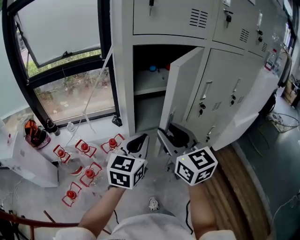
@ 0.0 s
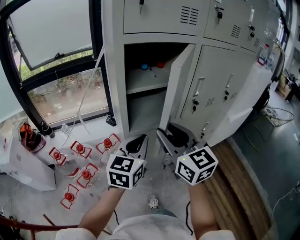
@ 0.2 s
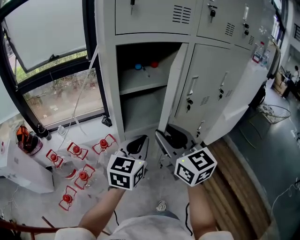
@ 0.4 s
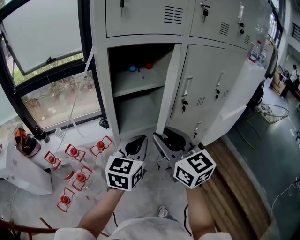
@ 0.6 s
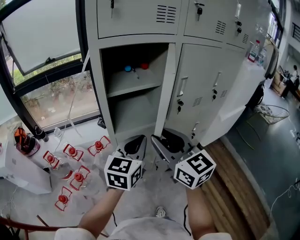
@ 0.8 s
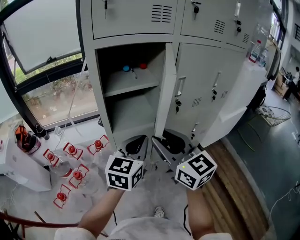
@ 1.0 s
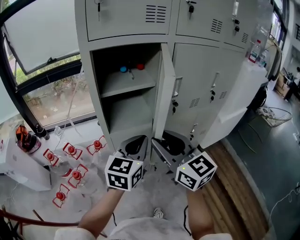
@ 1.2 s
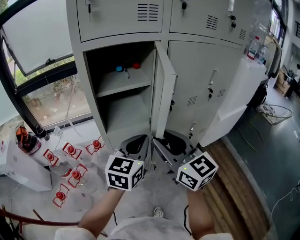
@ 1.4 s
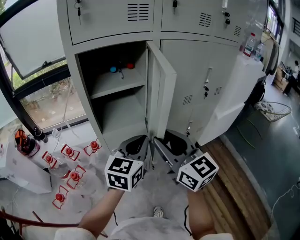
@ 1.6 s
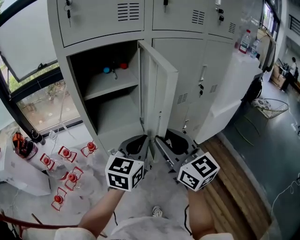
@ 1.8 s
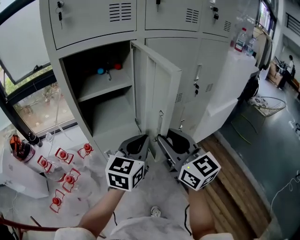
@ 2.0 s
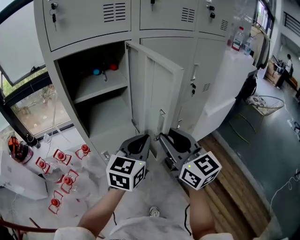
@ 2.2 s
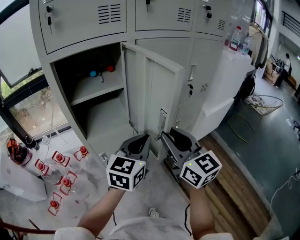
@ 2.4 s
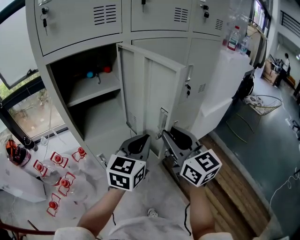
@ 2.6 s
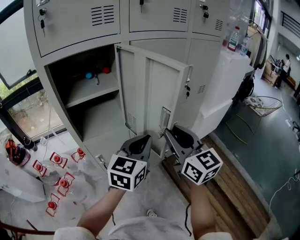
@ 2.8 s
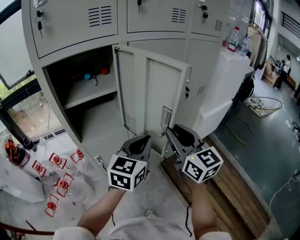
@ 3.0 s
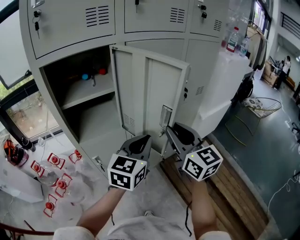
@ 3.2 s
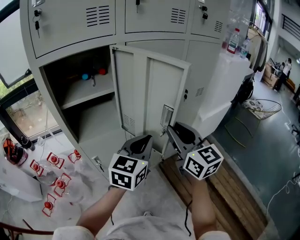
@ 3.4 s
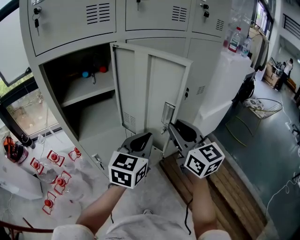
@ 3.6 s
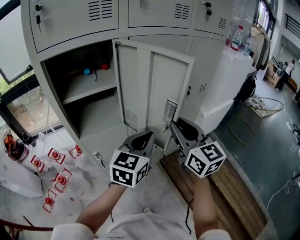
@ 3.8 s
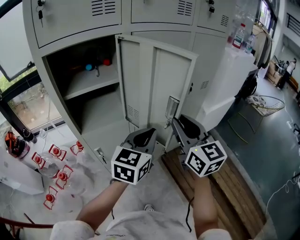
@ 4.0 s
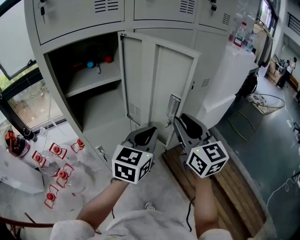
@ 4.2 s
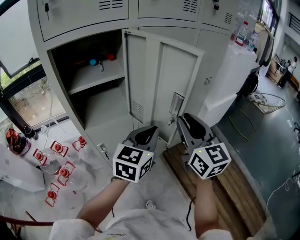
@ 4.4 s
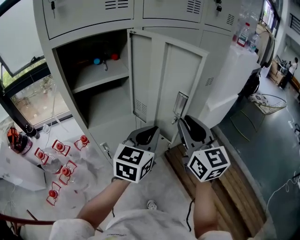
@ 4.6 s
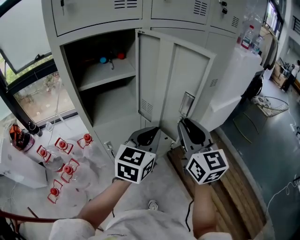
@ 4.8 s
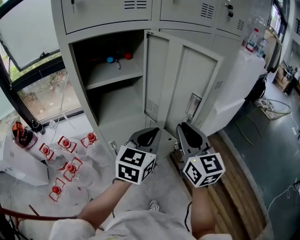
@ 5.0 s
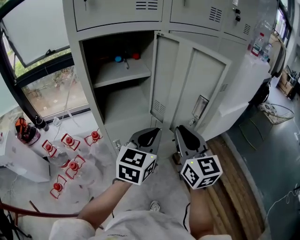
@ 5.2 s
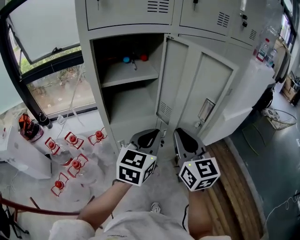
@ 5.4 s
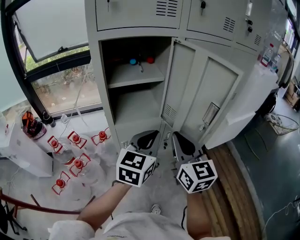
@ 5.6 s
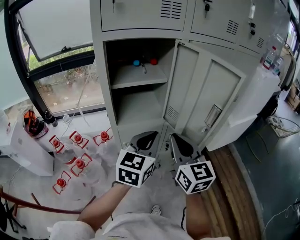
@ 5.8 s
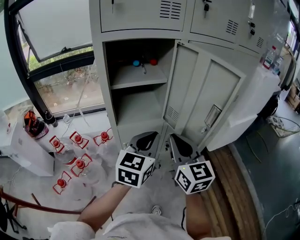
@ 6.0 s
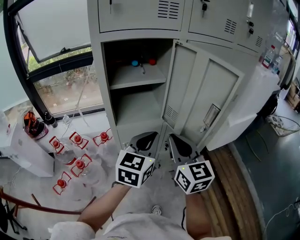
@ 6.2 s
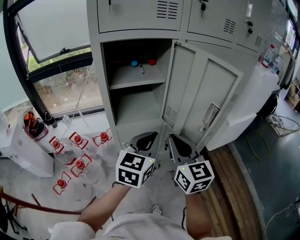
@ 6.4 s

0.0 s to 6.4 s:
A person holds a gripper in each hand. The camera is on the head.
0.0 to 1.6 s: The two grippers go about 15 cm to the right.
1.6 to 3.2 s: The right gripper goes roughly 15 cm to the right and forward, while the left gripper moves to the right, roughly 10 cm.
3.2 to 4.8 s: There are only small adjustments of the grippers.
4.8 to 6.4 s: The grippers both shift to the left by approximately 10 cm.

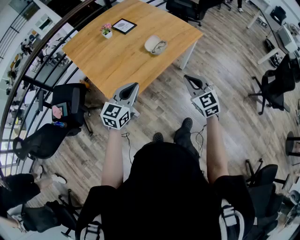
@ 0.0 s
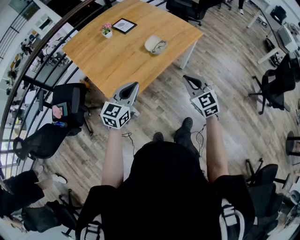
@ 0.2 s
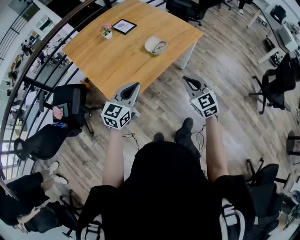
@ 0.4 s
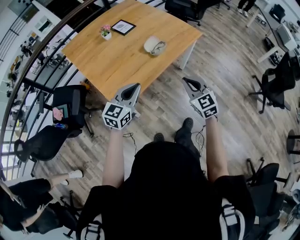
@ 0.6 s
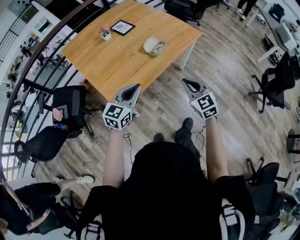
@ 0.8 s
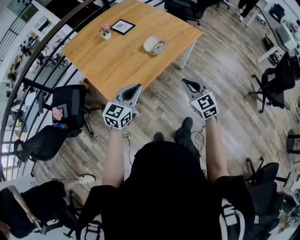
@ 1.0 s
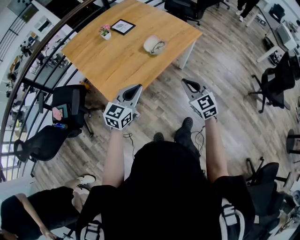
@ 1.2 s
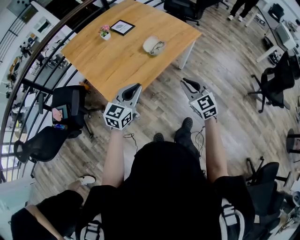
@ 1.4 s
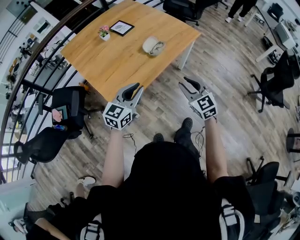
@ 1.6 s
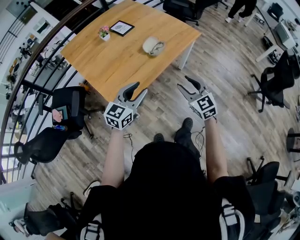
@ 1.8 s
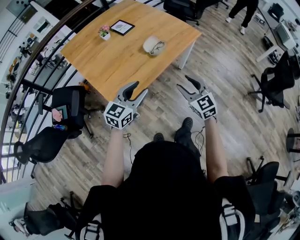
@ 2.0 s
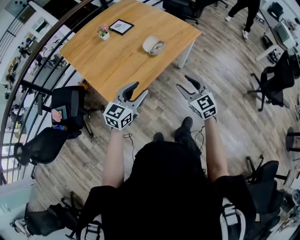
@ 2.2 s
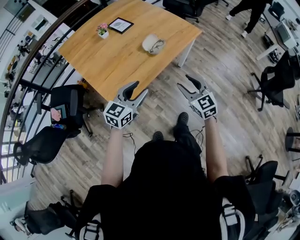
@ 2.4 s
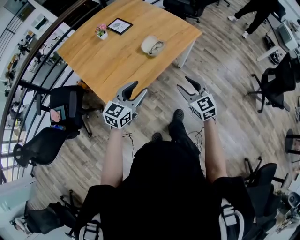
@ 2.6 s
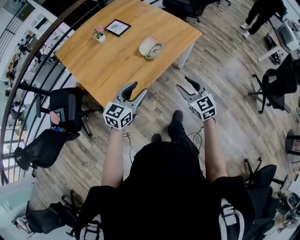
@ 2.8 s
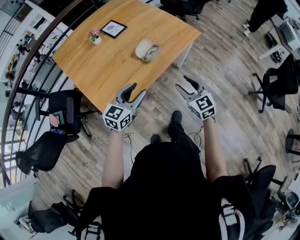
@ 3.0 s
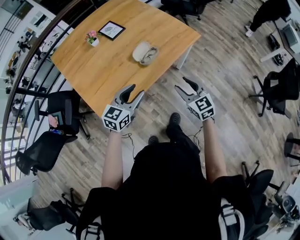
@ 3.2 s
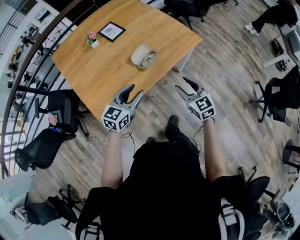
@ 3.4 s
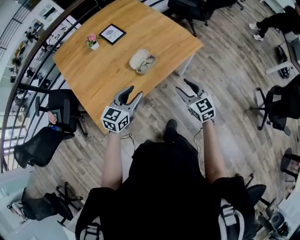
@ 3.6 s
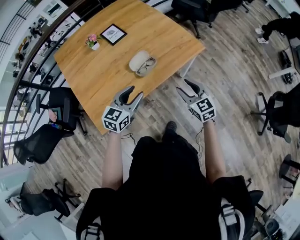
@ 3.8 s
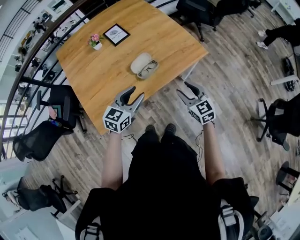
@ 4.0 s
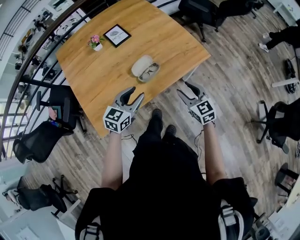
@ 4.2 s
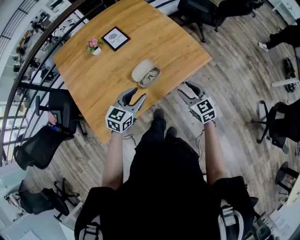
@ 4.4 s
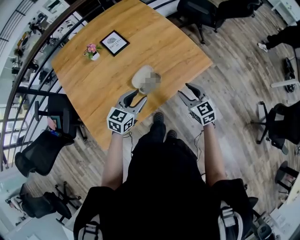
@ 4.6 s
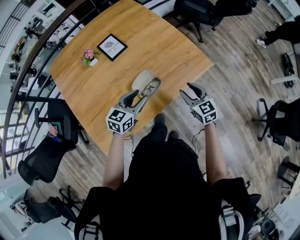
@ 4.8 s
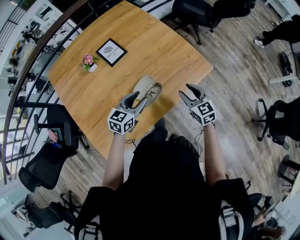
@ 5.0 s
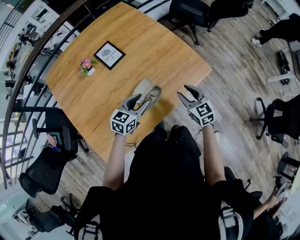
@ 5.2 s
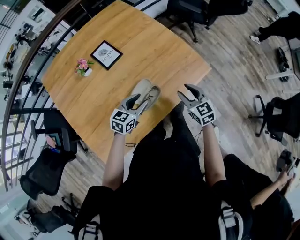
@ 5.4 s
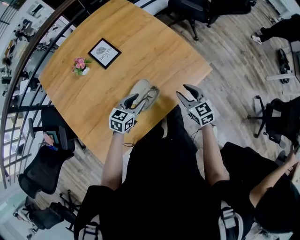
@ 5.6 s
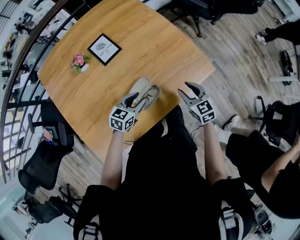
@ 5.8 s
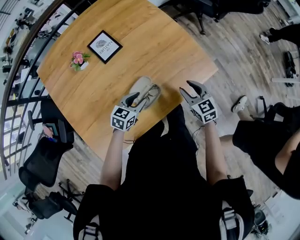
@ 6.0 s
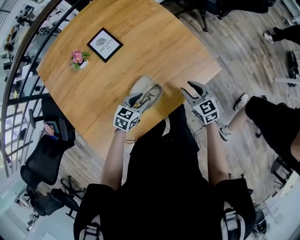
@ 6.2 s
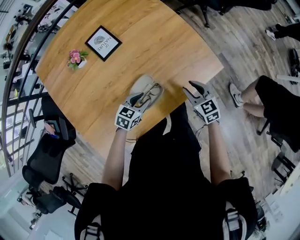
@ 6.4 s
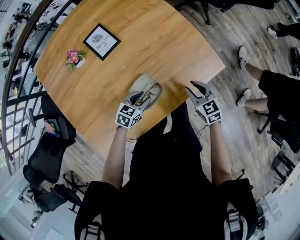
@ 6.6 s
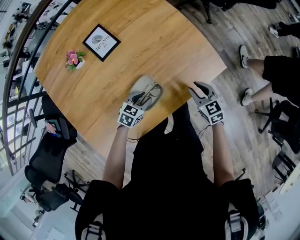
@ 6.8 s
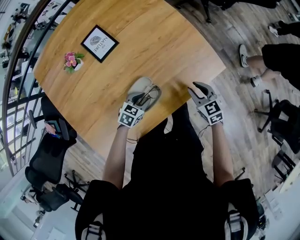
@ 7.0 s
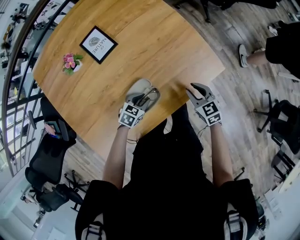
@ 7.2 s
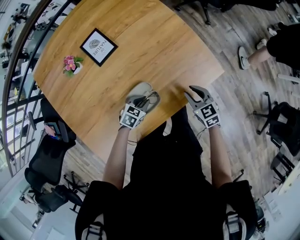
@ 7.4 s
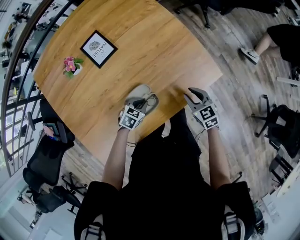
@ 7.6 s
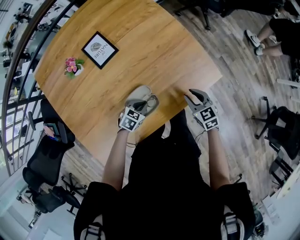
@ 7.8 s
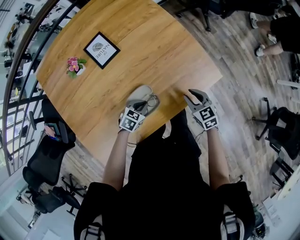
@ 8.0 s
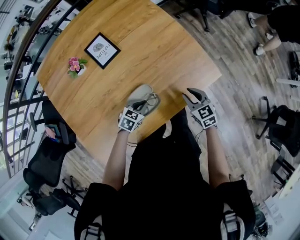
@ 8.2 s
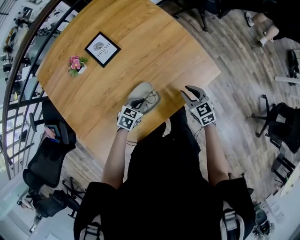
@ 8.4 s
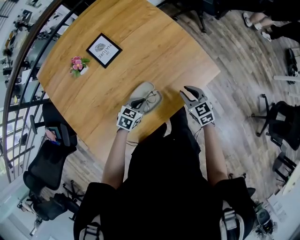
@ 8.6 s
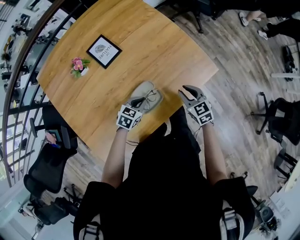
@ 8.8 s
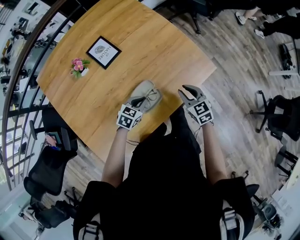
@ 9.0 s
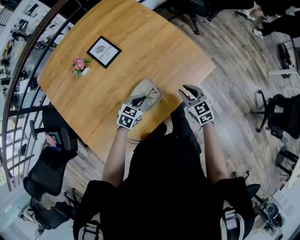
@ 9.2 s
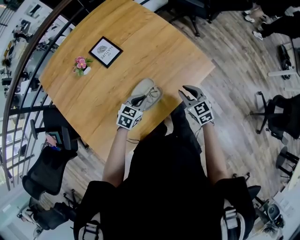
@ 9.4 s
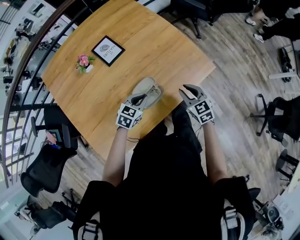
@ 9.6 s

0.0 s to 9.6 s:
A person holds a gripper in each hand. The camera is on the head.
0.0 to 1.6 s: The right gripper opens.
1.6 to 3.2 s: The grippers both shift forward and to the right by roughly 15 cm. The left gripper opens up.
3.2 to 4.8 s: Both grippers move forward, approximately 25 cm.
4.8 to 6.4 s: The right gripper is displaced downward and forward by some 10 cm; the left gripper is displaced downward by roughly 15 cm, and changes its angle by some 20 degrees.
6.4 to 8.0 s: The left gripper moves downward, about 5 cm, and closes up.
8.0 to 9.6 s: The left gripper heads upward, covering approximately 10 cm. The right gripper goes approximately 10 cm upward and backward.

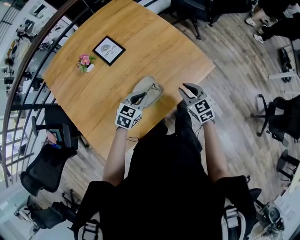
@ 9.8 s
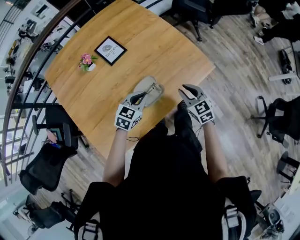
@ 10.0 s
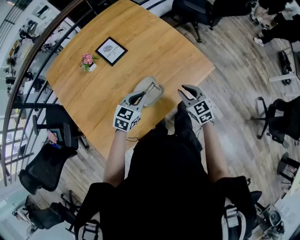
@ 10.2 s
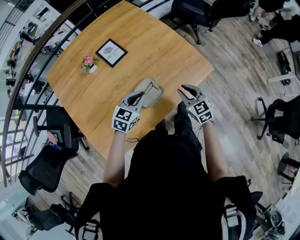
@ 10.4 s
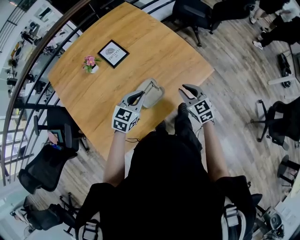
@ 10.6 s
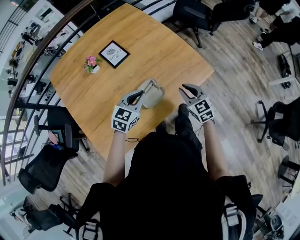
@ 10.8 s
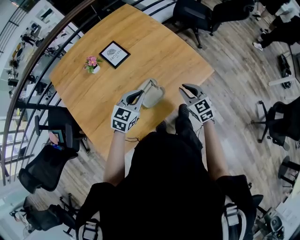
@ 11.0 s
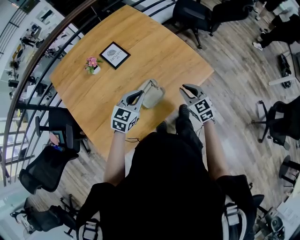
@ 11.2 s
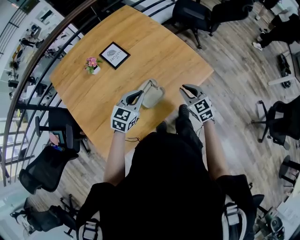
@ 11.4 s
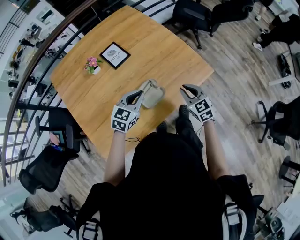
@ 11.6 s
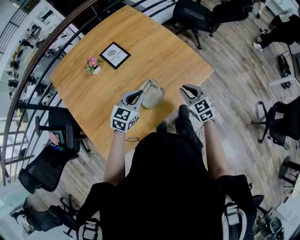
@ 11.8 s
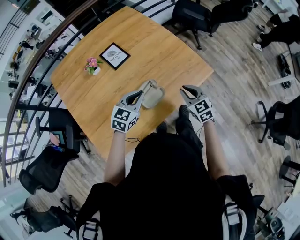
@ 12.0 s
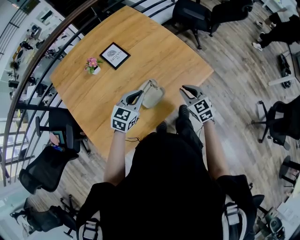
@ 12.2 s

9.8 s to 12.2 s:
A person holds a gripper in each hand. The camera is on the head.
9.8 to 11.0 s: The left gripper shifts some 10 cm upward.
11.0 to 12.2 s: Both grippers stay about where they are.

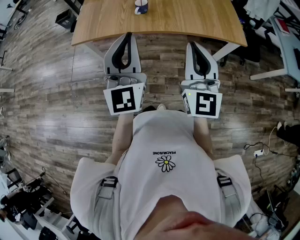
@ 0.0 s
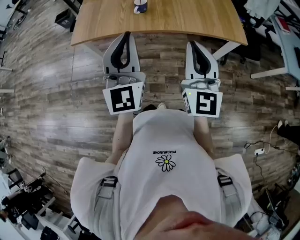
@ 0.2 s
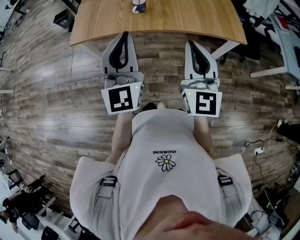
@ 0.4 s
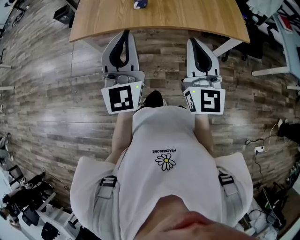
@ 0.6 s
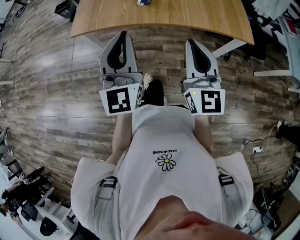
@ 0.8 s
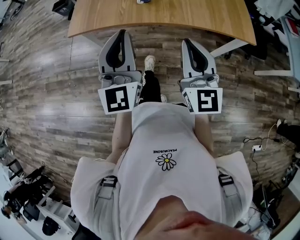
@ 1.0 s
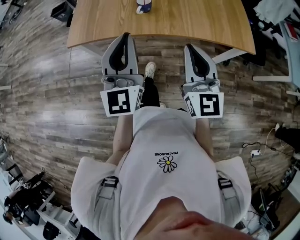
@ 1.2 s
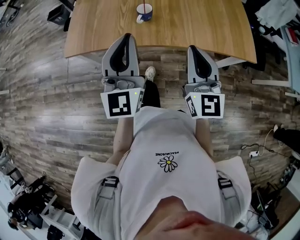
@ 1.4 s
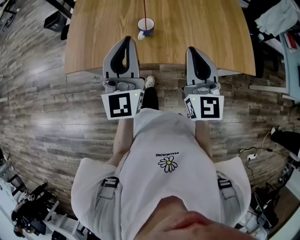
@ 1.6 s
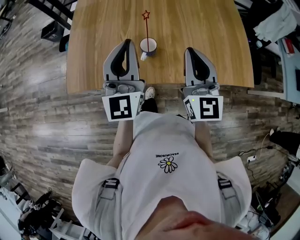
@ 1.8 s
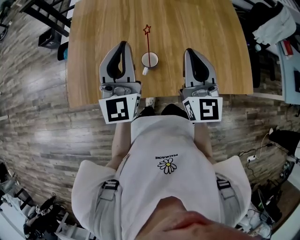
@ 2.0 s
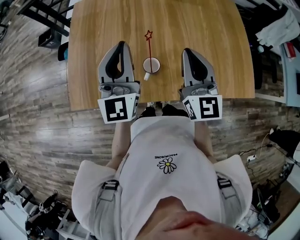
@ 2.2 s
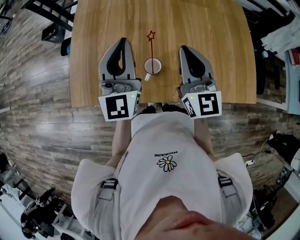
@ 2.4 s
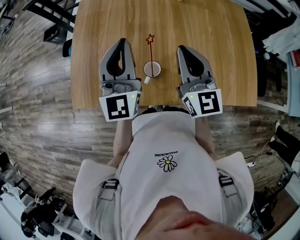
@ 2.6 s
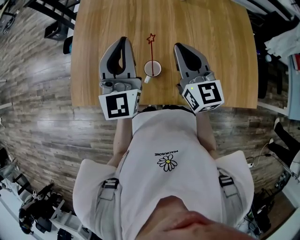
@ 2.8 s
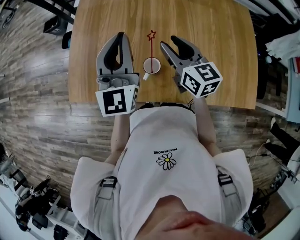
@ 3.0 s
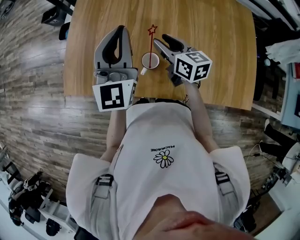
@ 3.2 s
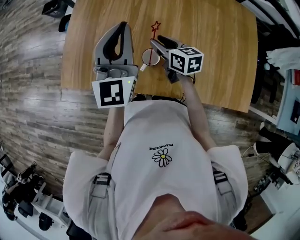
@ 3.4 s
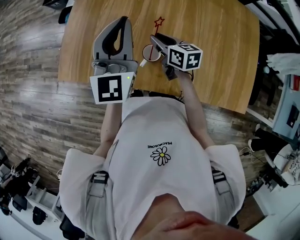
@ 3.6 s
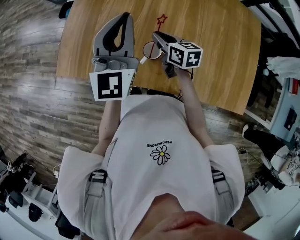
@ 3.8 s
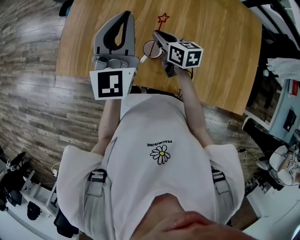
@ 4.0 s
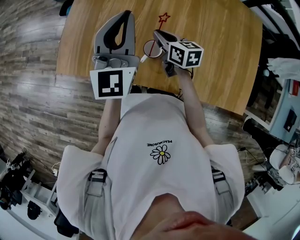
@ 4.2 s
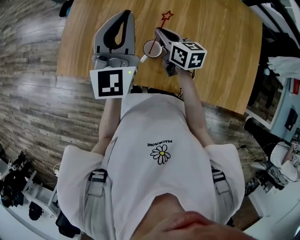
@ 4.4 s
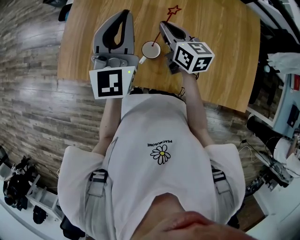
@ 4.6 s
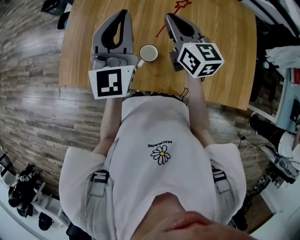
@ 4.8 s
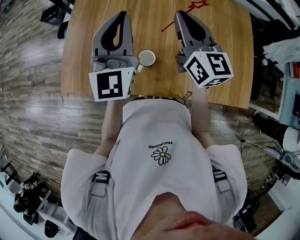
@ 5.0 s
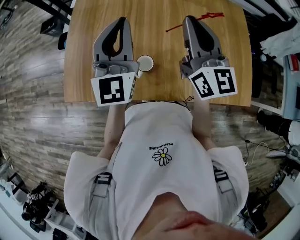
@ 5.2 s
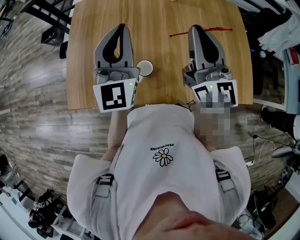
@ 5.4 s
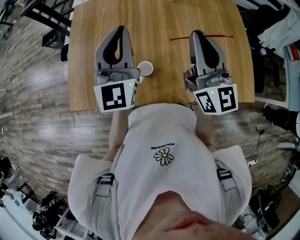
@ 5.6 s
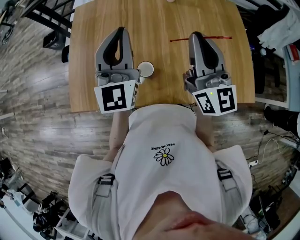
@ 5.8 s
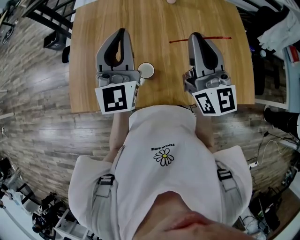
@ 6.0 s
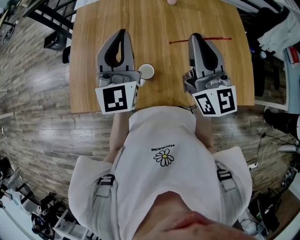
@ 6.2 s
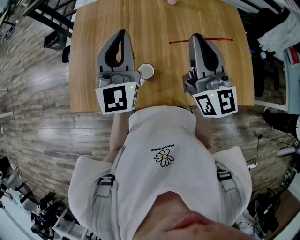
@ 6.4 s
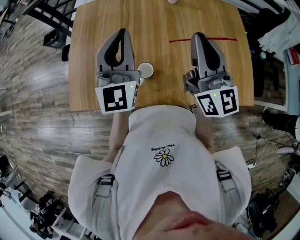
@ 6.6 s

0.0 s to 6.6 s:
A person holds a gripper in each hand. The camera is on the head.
0.0 to 1.6 s: Both grippers travel together forward, some 25 cm.
1.6 to 3.2 s: The left gripper goes approximately 20 cm forward. Meanwhile the right gripper shifts roughly 30 cm forward and downward, changes its angle by roughly 50 degrees, and opens its fingers.
3.2 to 5.0 s: The right gripper goes about 15 cm upward, rotates roughly 30 degrees, and closes its fingers.
5.0 to 6.6 s: The right gripper moves backward, to the right and upward, some 10 cm.
